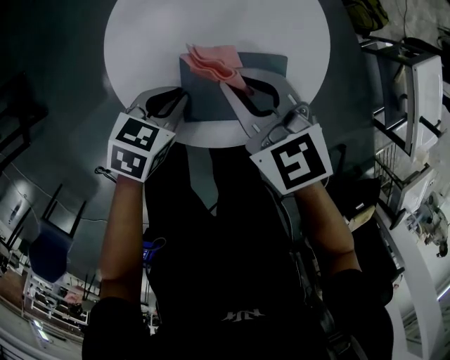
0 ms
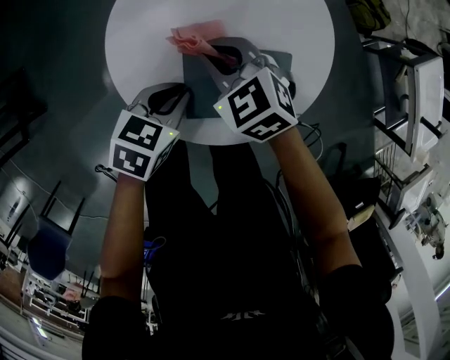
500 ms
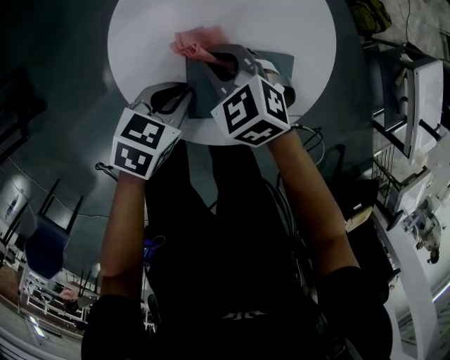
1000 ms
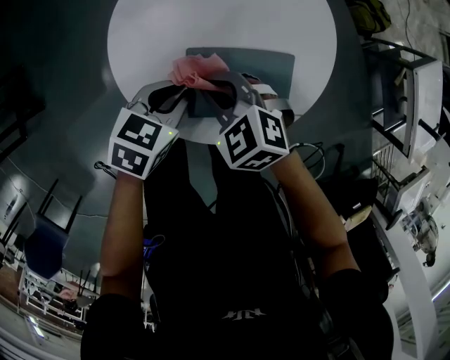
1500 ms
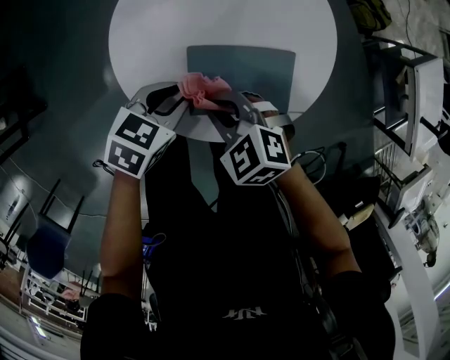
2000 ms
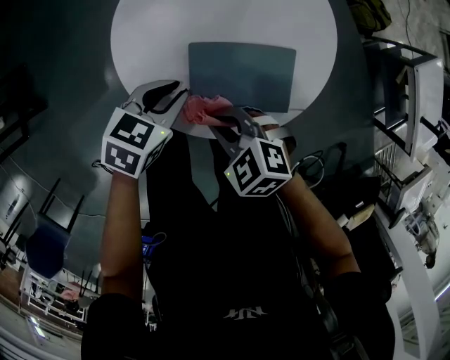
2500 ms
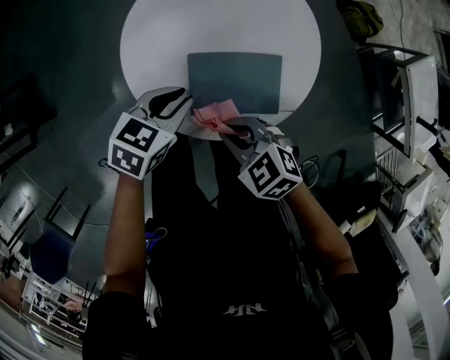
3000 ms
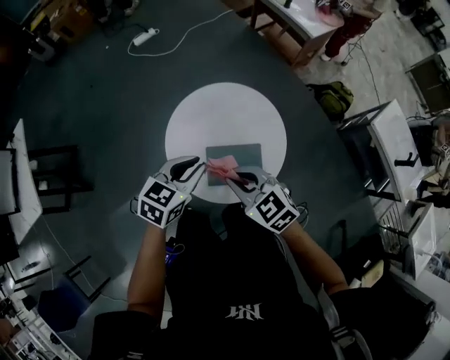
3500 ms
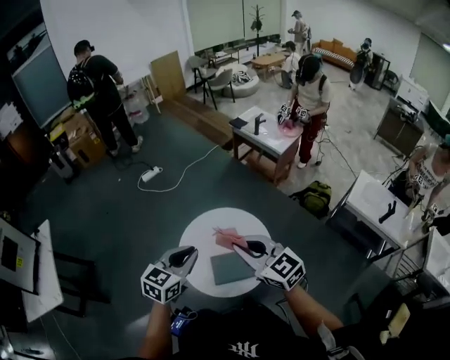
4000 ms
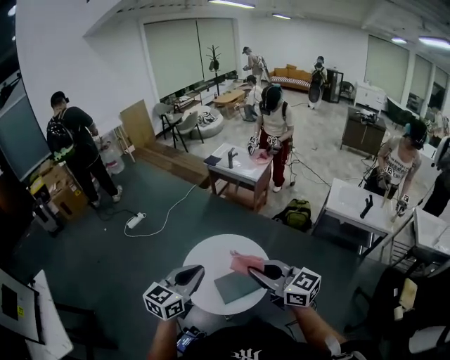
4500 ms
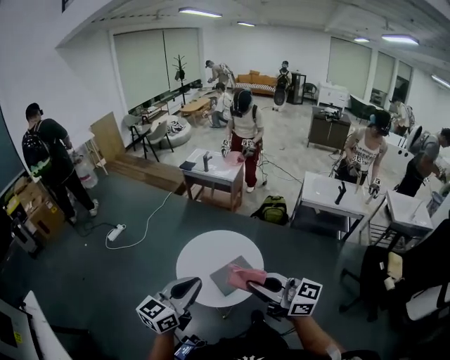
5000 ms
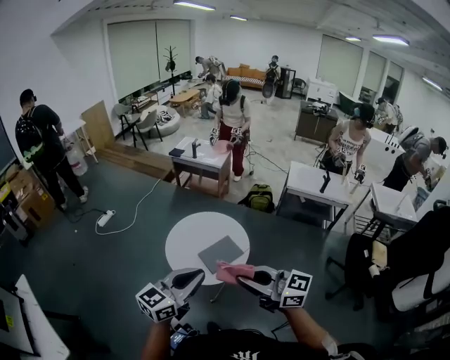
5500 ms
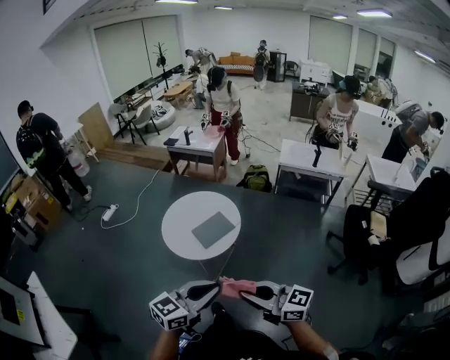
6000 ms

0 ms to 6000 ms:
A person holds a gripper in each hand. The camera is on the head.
0 ms to 2000 ms: The right gripper moves some 15 cm, and changes its angle by some 30 degrees.
2000 ms to 4000 ms: Both grippers travel together upward, about 50 cm. The left gripper changes its angle by approximately 40 degrees; the right gripper tips its fingers upward by approximately 40 degrees.
4000 ms to 6000 ms: The two grippers travel together, roughly 50 cm. The right gripper turns by roughly 30 degrees; the left gripper turns by roughly 50 degrees.

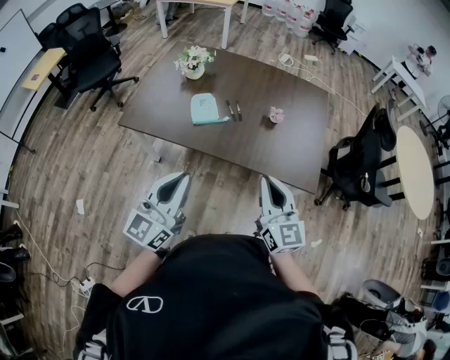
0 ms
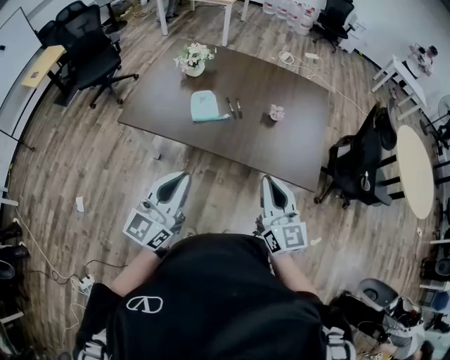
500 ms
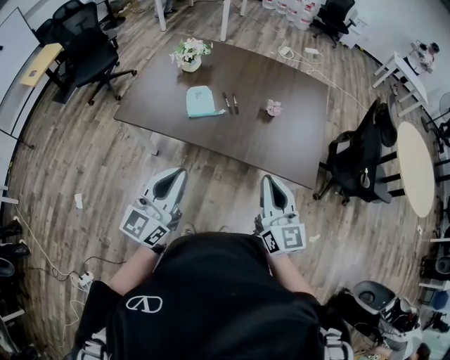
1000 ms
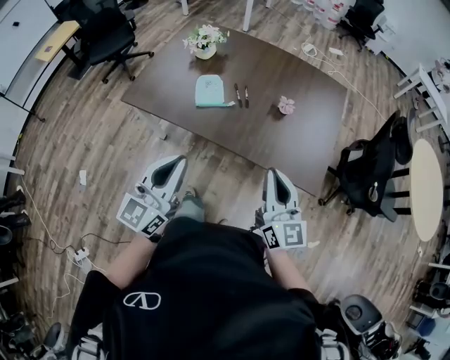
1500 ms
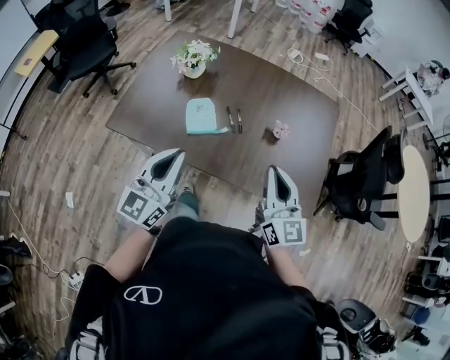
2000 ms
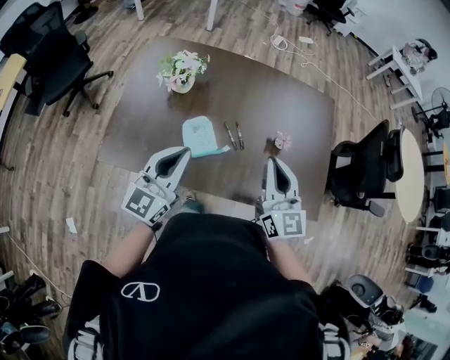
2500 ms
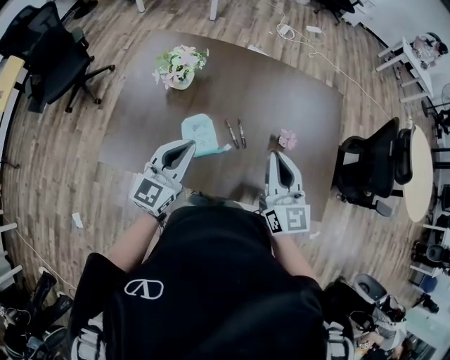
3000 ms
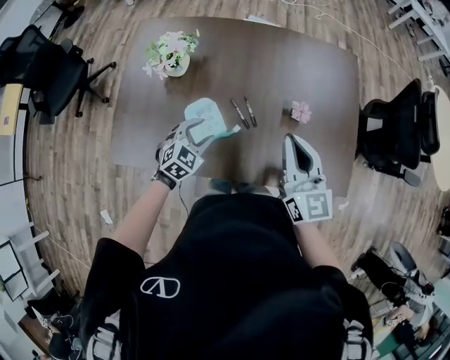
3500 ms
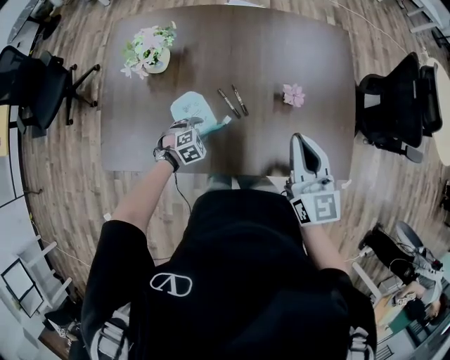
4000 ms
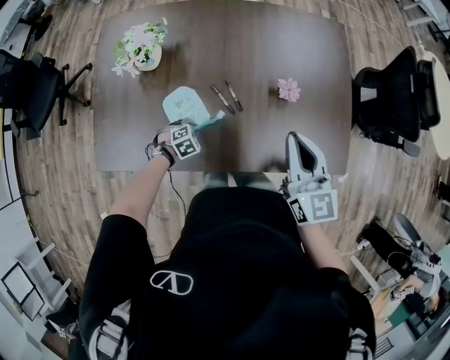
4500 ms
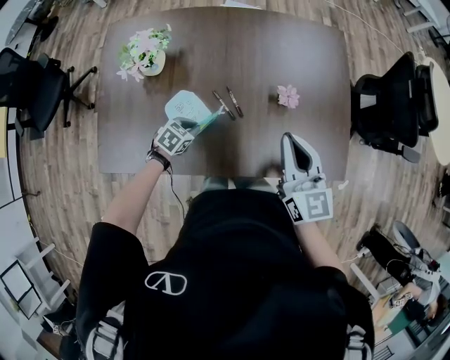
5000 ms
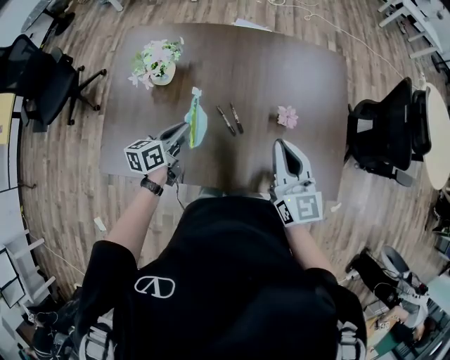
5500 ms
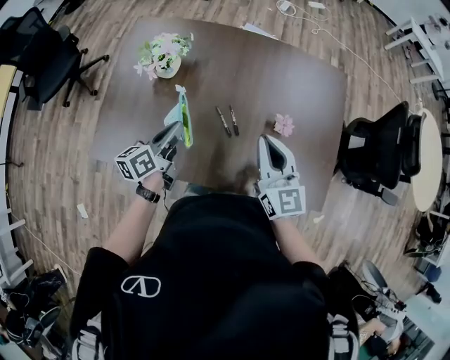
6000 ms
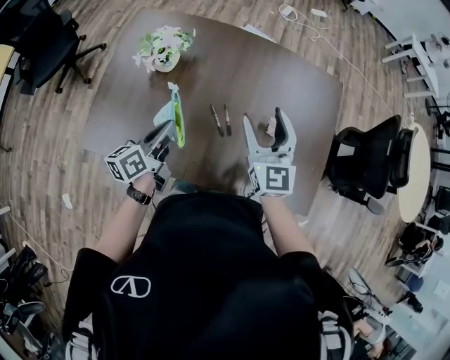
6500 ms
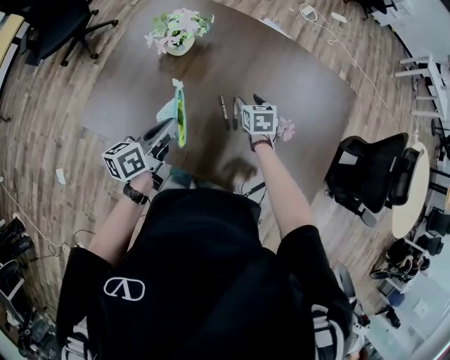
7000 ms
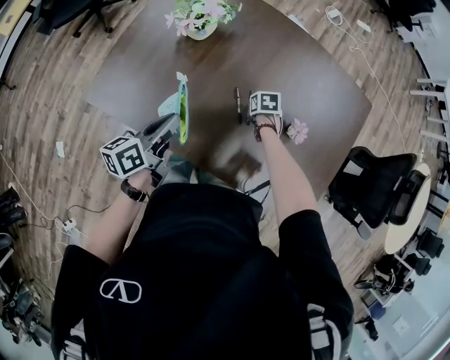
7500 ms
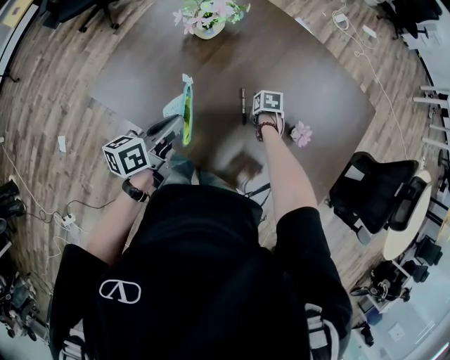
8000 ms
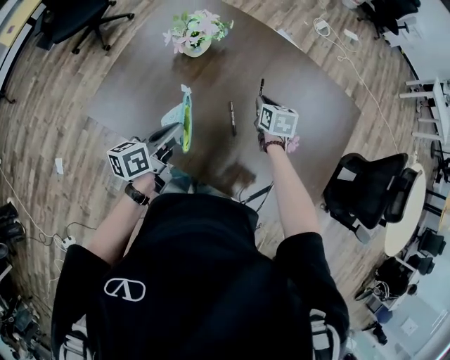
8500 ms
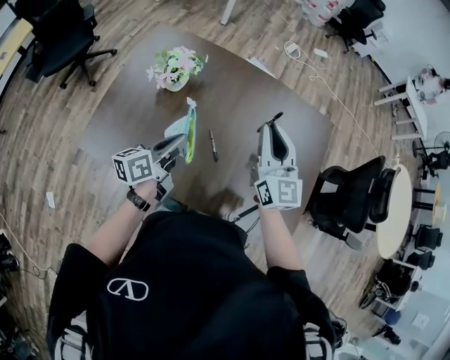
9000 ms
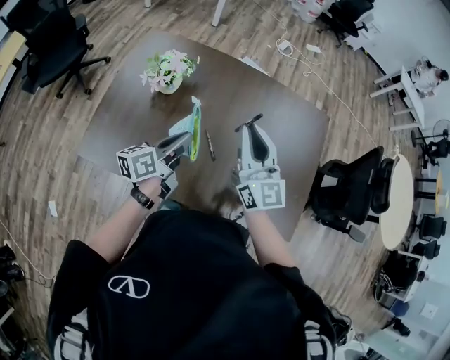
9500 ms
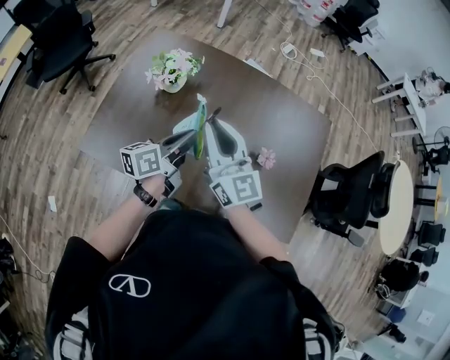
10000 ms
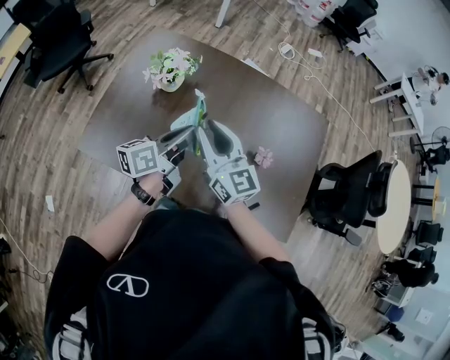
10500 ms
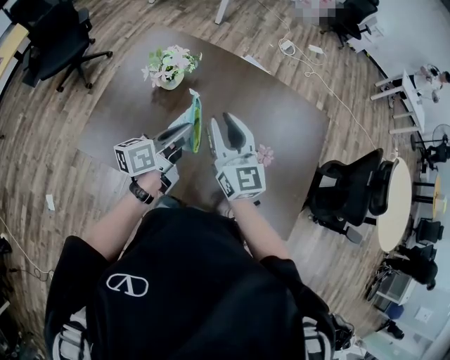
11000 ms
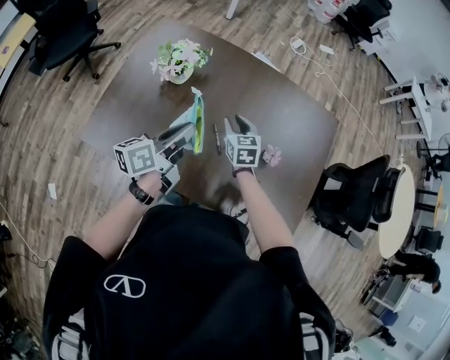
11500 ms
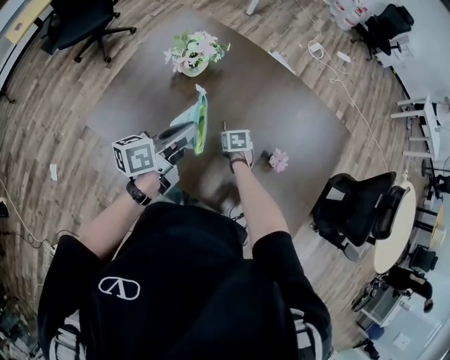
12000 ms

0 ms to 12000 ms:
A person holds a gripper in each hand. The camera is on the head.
0 ms to 2000 ms: The two grippers go roughly 20 cm forward.
2000 ms to 4000 ms: The left gripper travels downward and forward by about 50 cm, tilts its fingers roughly 80 degrees downward, and opens its fingers, while the right gripper heads forward, covering roughly 20 cm.
4000 ms to 6000 ms: The left gripper is displaced upward by roughly 25 cm, tips its fingers upward by about 50 degrees, and closes its fingers; the right gripper changes place by approximately 5 cm.
6000 ms to 8000 ms: The right gripper is displaced downward by some 40 cm, tilts its fingers roughly 70 degrees downward, and opens, then closes once more, while the left gripper ends up approximately 10 cm from where it was.
8000 ms to 10000 ms: The right gripper shifts some 50 cm upward, and points its fingers approximately 90 degrees further upward. Meanwhile the left gripper goes some 10 cm upward.
10000 ms to 12000 ms: The right gripper goes some 40 cm downward, and angles its fingers downward, by roughly 70 degrees.

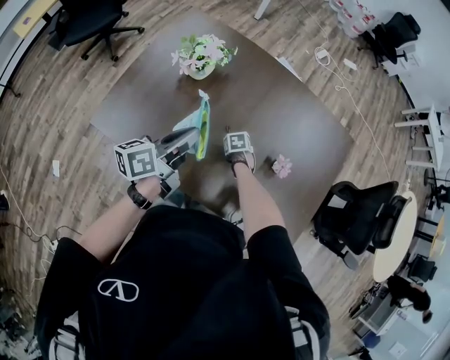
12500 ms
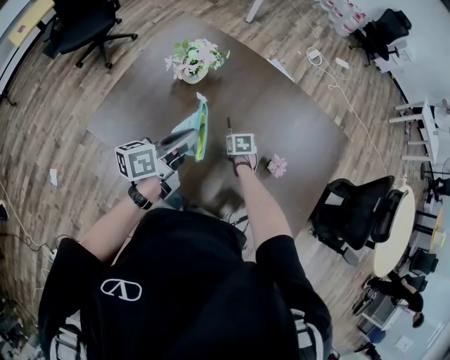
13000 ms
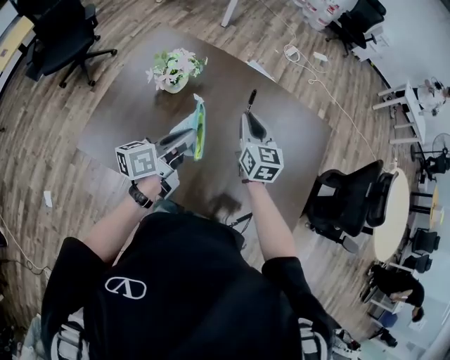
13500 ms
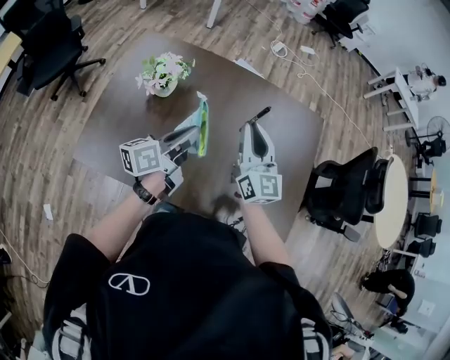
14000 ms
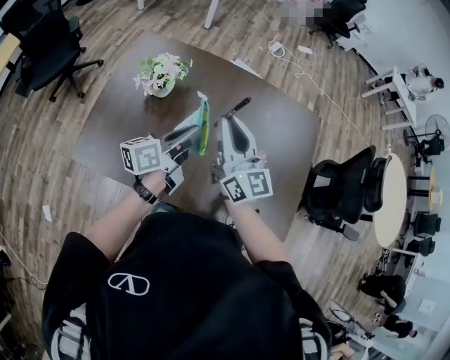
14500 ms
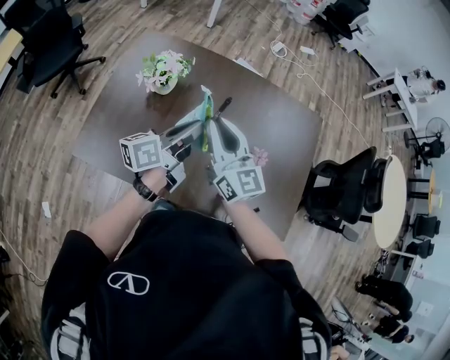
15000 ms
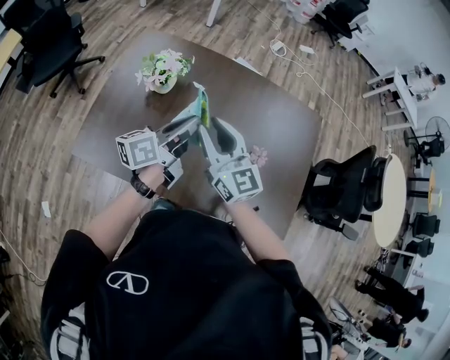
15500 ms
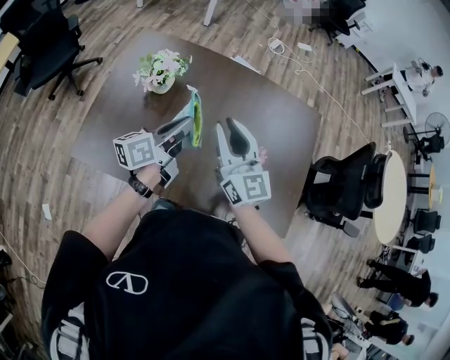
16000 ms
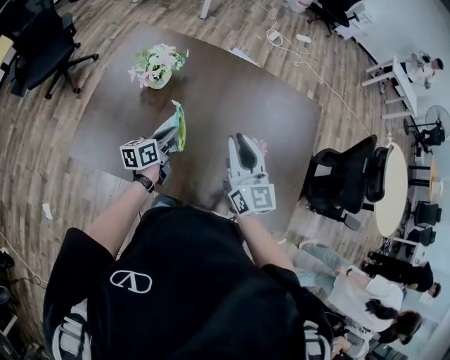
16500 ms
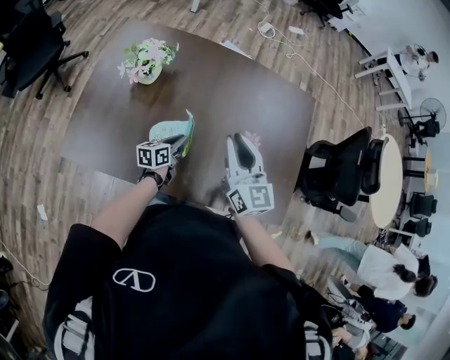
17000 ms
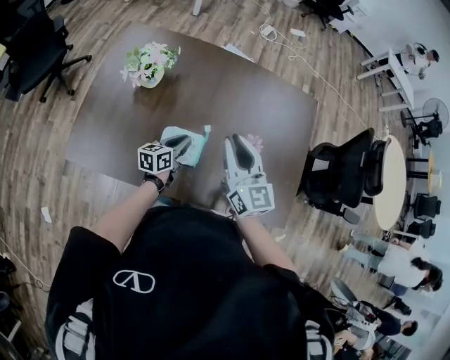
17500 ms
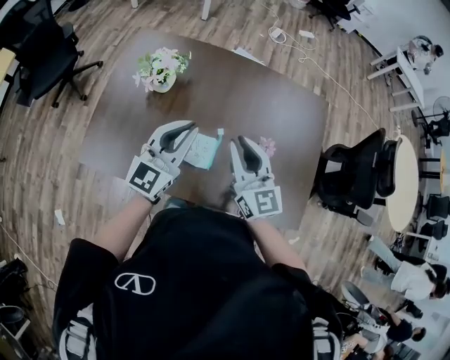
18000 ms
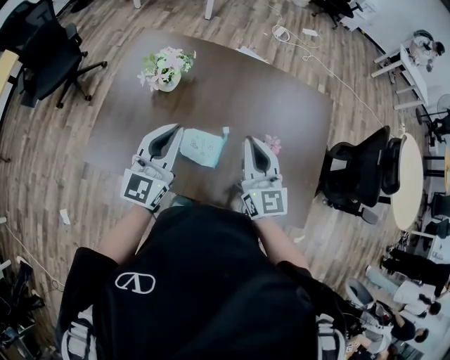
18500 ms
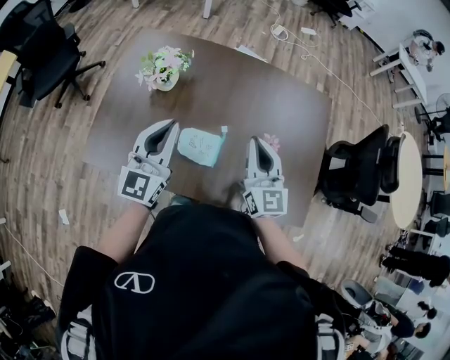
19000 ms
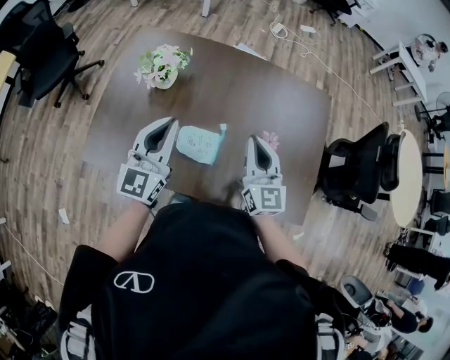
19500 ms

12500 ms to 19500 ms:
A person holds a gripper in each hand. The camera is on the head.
12500 ms to 14500 ms: The right gripper heads upward, covering about 50 cm, and angles its fingers upward, by roughly 90 degrees. Meanwhile the left gripper moves roughly 10 cm.
14500 ms to 16000 ms: The grippers stay close to where they were, moving slightly.
16000 ms to 17500 ms: The left gripper travels downward by about 20 cm, and swivels about 20 degrees, while the right gripper heads to the right and downward, covering about 10 cm.
17500 ms to 19500 ms: The left gripper goes approximately 25 cm upward, and swivels about 50 degrees.

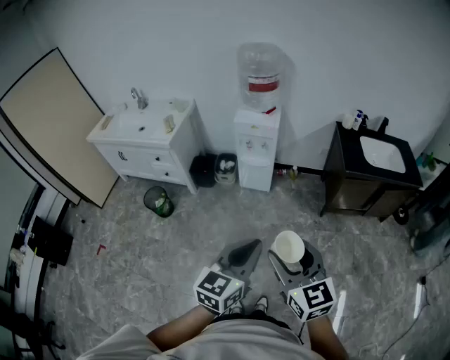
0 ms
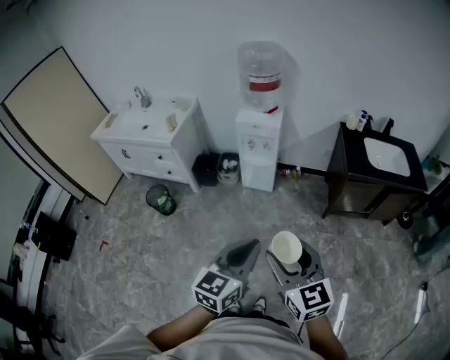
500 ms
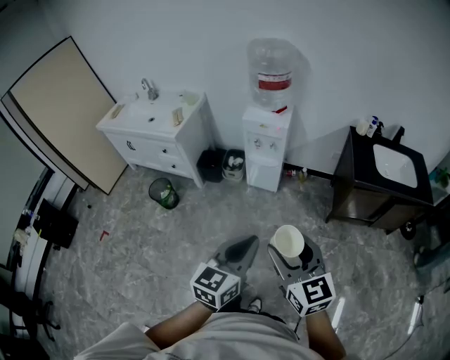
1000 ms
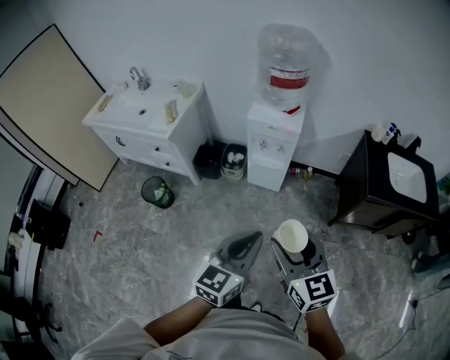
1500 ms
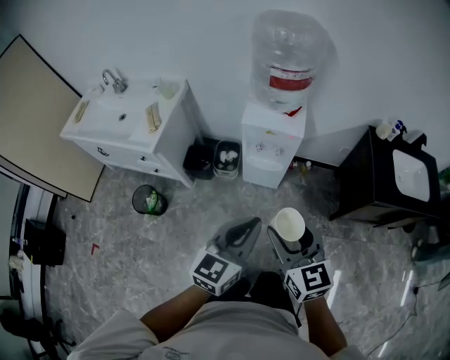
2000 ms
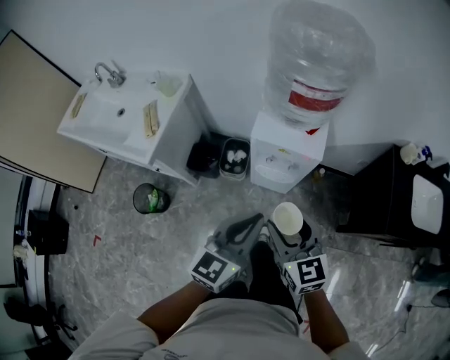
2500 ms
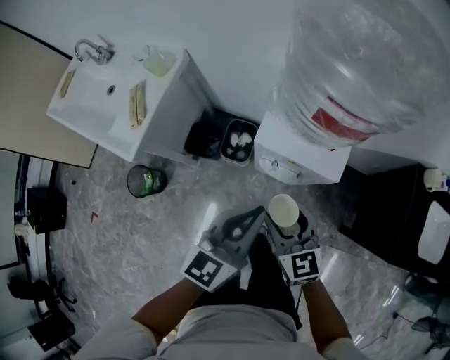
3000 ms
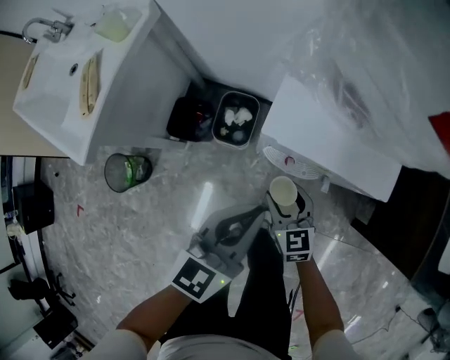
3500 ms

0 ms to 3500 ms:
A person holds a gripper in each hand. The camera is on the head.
0 ms to 2000 ms: Both grippers travel together forward, roughly 40 cm.
2000 ms to 3500 ms: The left gripper shifts approximately 40 cm forward and downward. The right gripper goes some 60 cm downward and forward.
